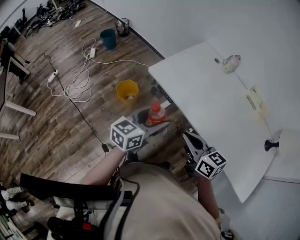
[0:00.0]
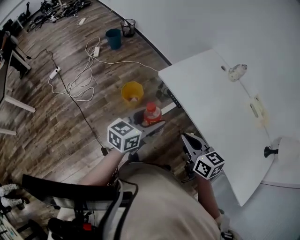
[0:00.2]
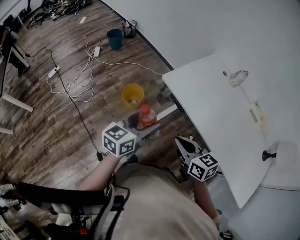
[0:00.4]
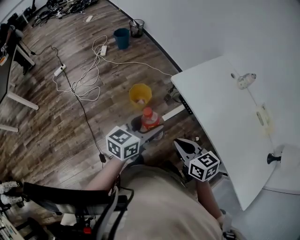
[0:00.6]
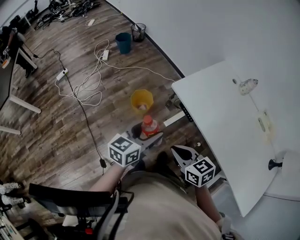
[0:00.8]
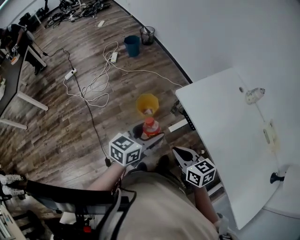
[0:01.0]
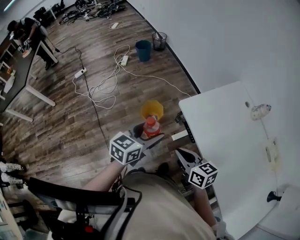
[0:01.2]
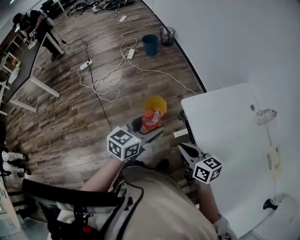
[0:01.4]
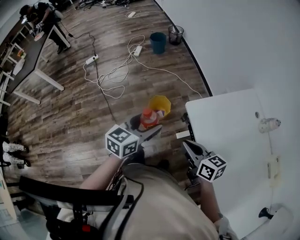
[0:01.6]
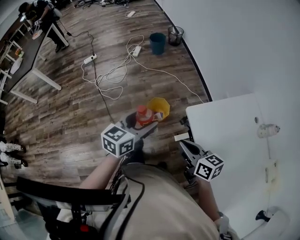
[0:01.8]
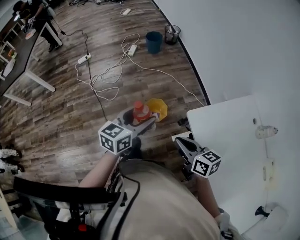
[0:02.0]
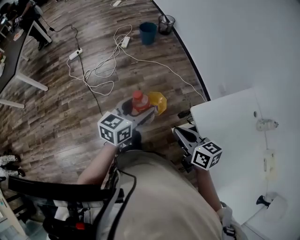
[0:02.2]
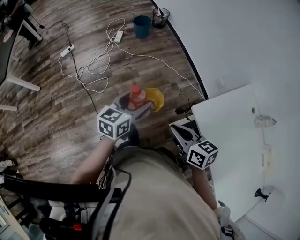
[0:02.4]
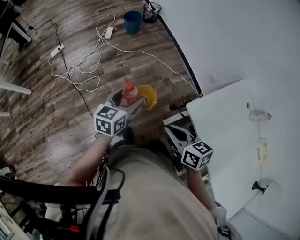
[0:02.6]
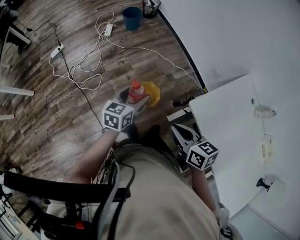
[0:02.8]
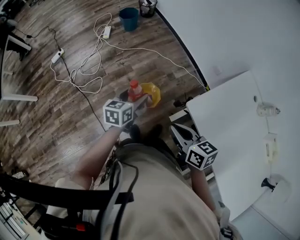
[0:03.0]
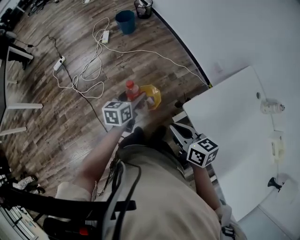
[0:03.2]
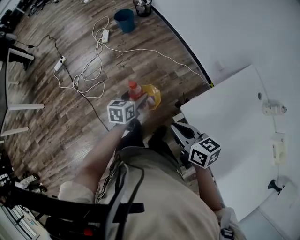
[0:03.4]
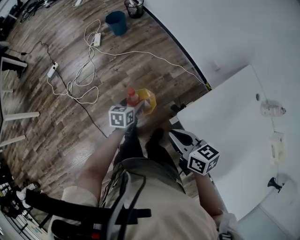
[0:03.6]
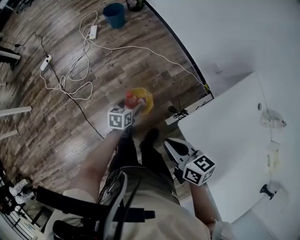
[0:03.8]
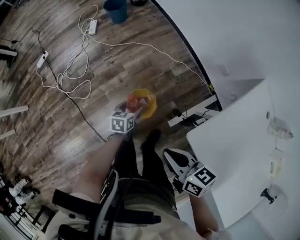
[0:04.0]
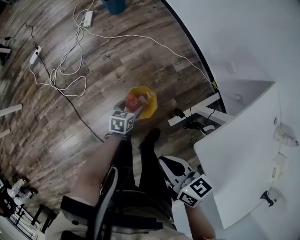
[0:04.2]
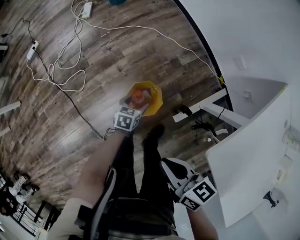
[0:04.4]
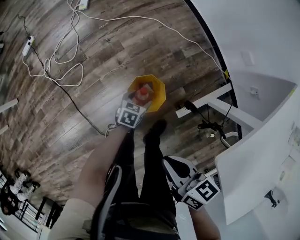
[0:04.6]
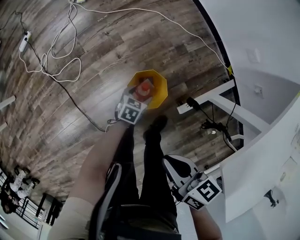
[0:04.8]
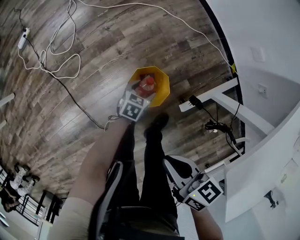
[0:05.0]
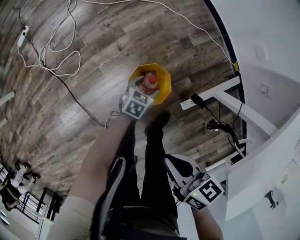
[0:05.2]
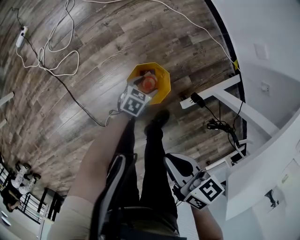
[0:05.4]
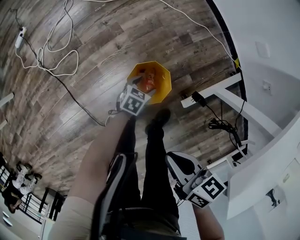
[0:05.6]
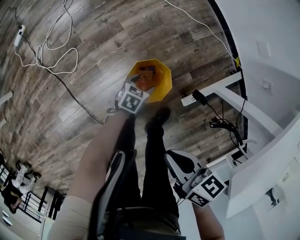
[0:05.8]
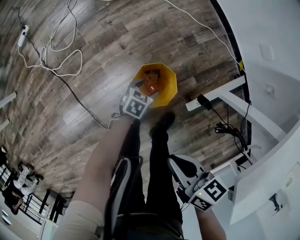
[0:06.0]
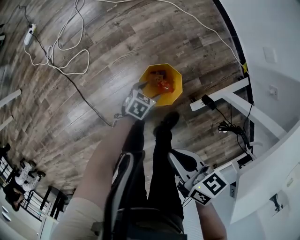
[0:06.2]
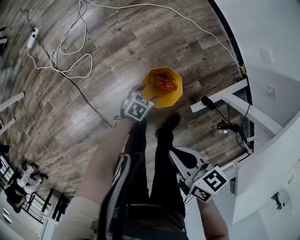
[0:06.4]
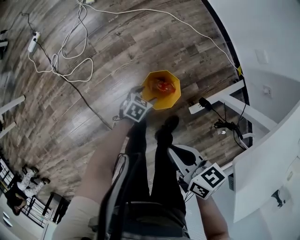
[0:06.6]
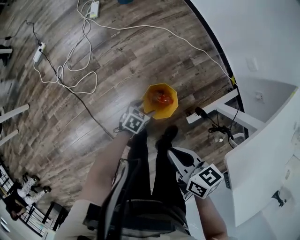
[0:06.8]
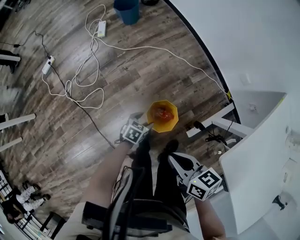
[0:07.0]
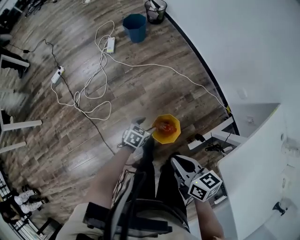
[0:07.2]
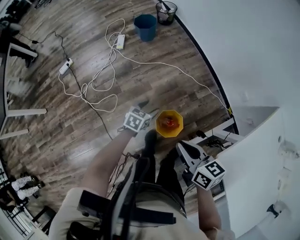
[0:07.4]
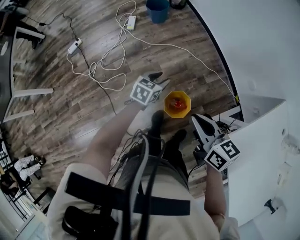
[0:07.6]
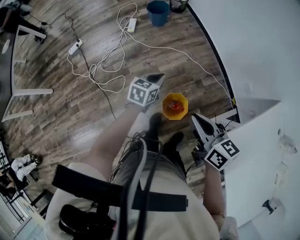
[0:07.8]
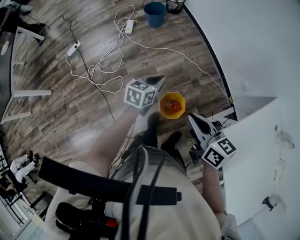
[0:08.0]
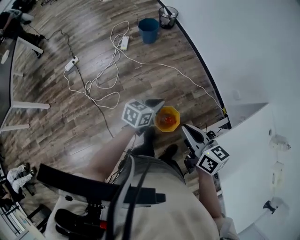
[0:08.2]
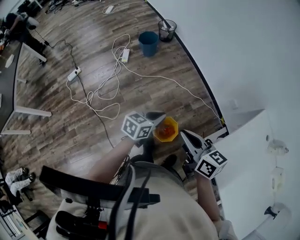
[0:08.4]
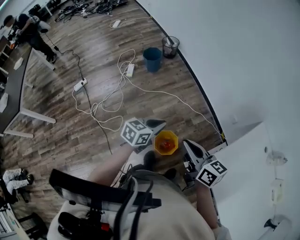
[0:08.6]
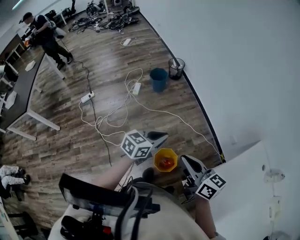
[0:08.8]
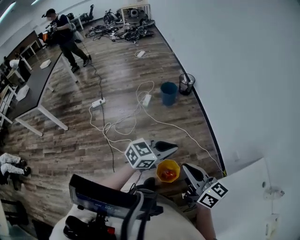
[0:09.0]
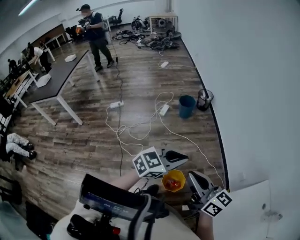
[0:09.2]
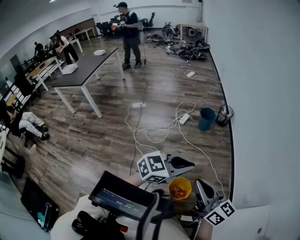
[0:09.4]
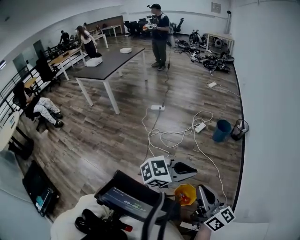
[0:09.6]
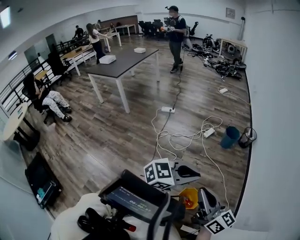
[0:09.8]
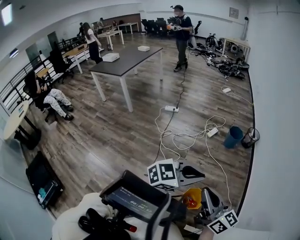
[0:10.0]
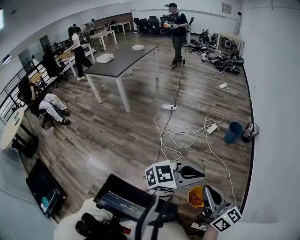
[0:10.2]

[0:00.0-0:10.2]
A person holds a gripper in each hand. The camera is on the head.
0:00.0 to 0:01.4: The left gripper moves approximately 20 cm, and swivels about 30 degrees. Meanwhile the right gripper ends up about 20 cm from where it was, and changes its angle by about 30 degrees.
0:01.4 to 0:03.0: The right gripper moves forward and to the left, roughly 25 cm. Meanwhile the left gripper goes roughly 30 cm forward and downward.
0:03.0 to 0:04.4: The left gripper shifts approximately 40 cm downward, and changes its angle by some 20 degrees, while the right gripper is displaced downward and forward by about 20 cm.
0:04.4 to 0:05.8: The two grippers go approximately 15 cm downward.
0:05.8 to 0:07.2: Both grippers travel together upward and to the left, some 25 cm.
0:07.2 to 0:08.8: The right gripper shifts about 25 cm upward, and turns by roughly 30 degrees, while the left gripper travels upward by about 40 cm, tips its fingers upward by some 30 degrees, and closes up.
0:08.8 to 0:10.2: The right gripper shifts roughly 25 cm to the left, backward and upward, and swivels some 30 degrees, while the left gripper moves backward, upward and to the left, approximately 30 cm, and swivels roughly 30 degrees.

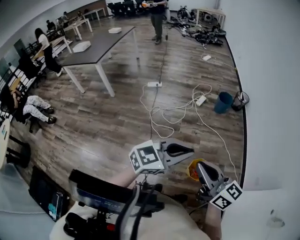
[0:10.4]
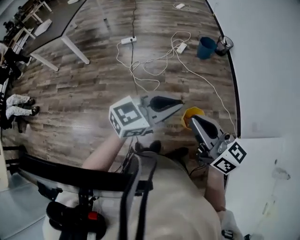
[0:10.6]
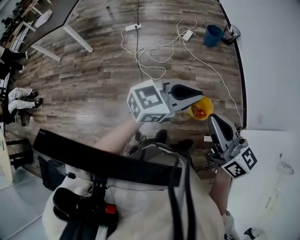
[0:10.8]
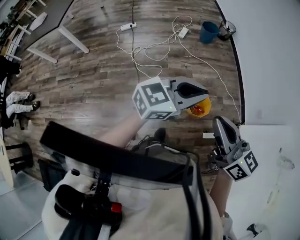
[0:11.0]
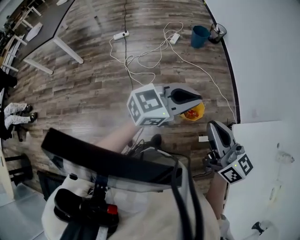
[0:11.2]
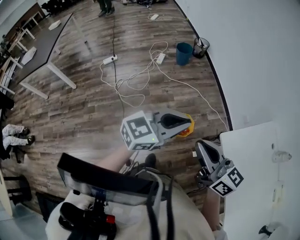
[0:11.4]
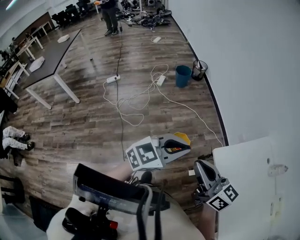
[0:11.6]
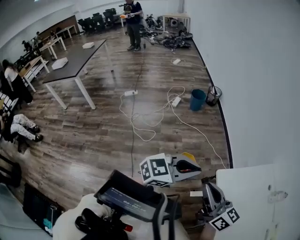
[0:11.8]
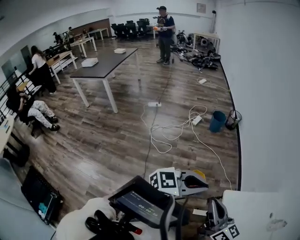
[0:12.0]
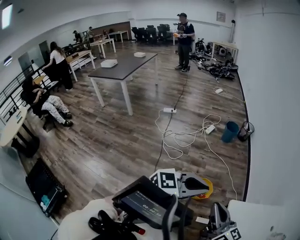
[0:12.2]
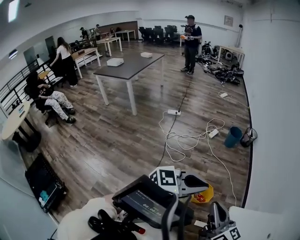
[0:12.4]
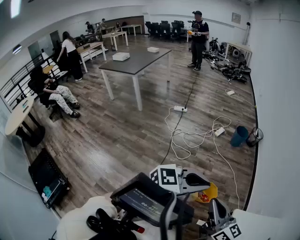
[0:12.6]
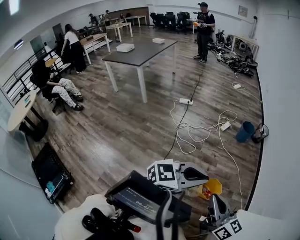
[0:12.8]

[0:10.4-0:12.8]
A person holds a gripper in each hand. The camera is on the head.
0:10.4 to 0:11.6: Both grippers travel together to the right and backward, about 20 cm. The right gripper swivels approximately 20 degrees, while the left gripper changes its angle by some 20 degrees.
0:11.6 to 0:12.8: Both grippers move to the left, about 15 cm. The left gripper turns by roughly 20 degrees; the right gripper changes its angle by about 20 degrees.

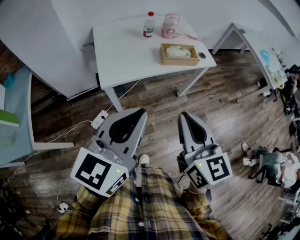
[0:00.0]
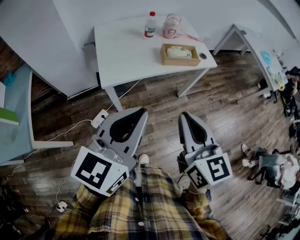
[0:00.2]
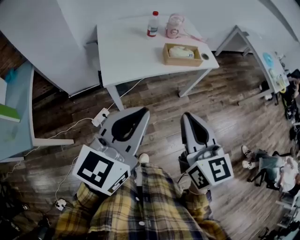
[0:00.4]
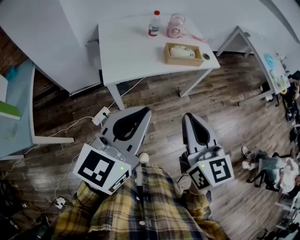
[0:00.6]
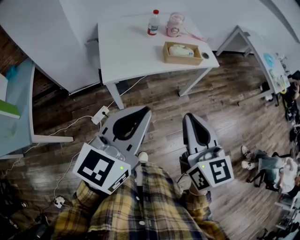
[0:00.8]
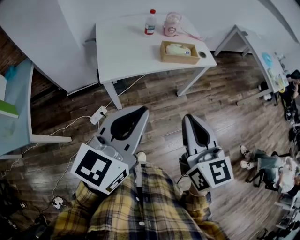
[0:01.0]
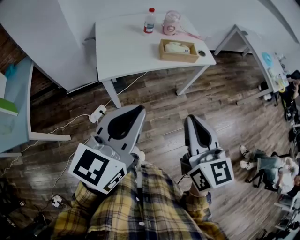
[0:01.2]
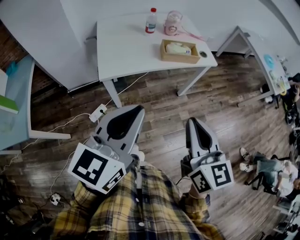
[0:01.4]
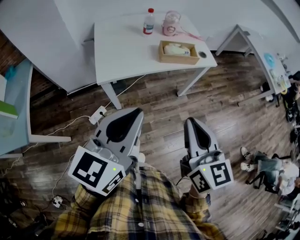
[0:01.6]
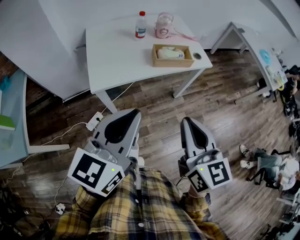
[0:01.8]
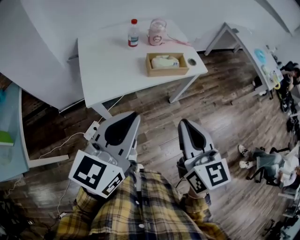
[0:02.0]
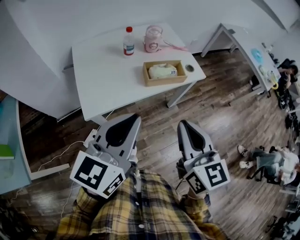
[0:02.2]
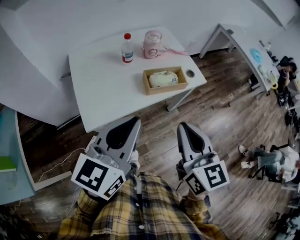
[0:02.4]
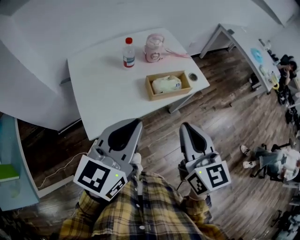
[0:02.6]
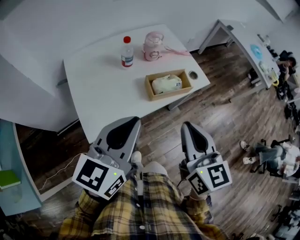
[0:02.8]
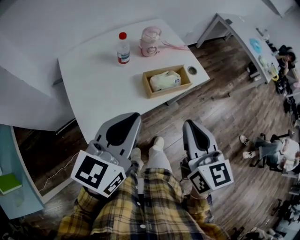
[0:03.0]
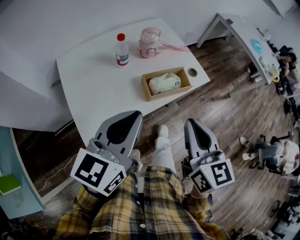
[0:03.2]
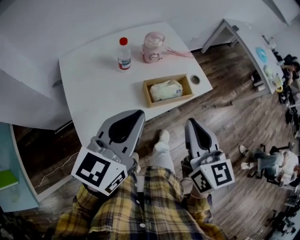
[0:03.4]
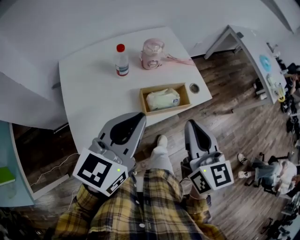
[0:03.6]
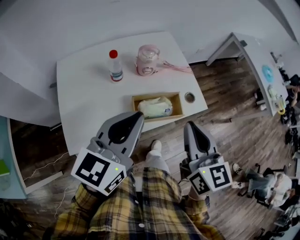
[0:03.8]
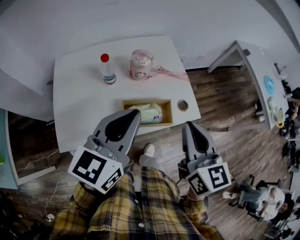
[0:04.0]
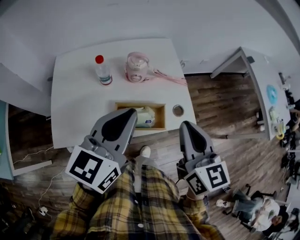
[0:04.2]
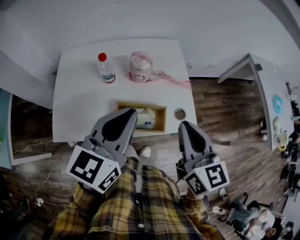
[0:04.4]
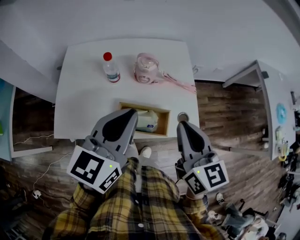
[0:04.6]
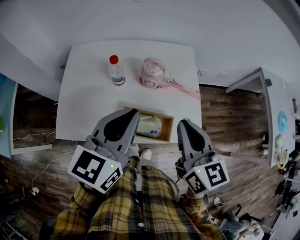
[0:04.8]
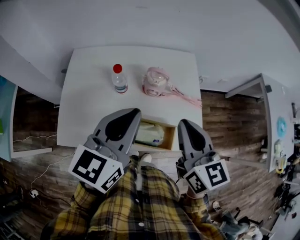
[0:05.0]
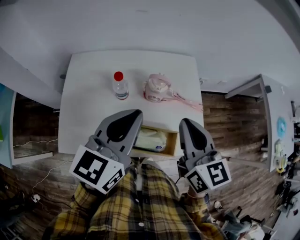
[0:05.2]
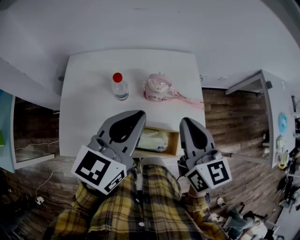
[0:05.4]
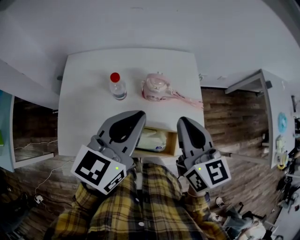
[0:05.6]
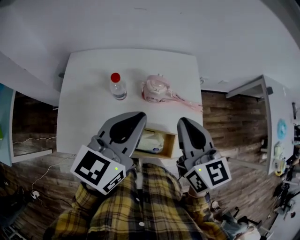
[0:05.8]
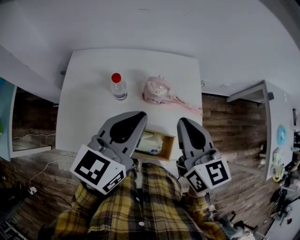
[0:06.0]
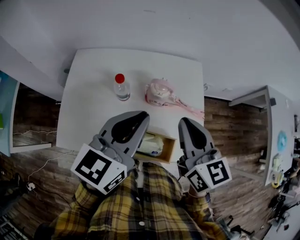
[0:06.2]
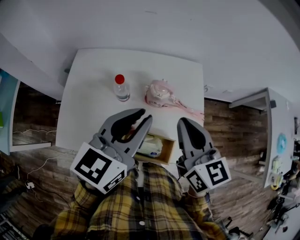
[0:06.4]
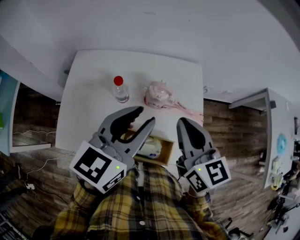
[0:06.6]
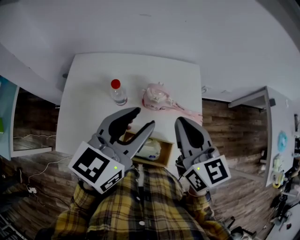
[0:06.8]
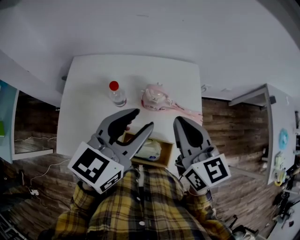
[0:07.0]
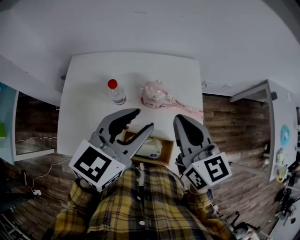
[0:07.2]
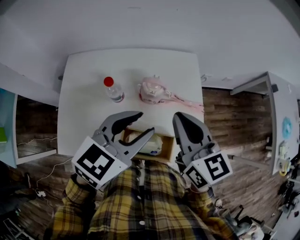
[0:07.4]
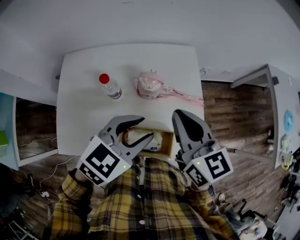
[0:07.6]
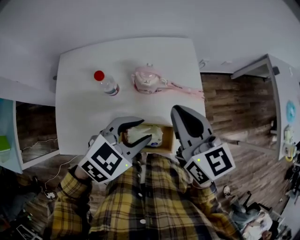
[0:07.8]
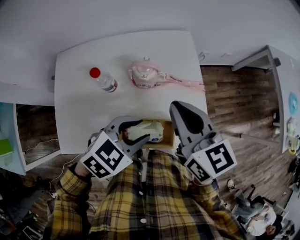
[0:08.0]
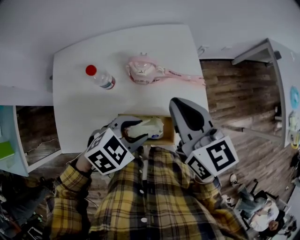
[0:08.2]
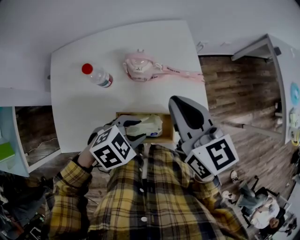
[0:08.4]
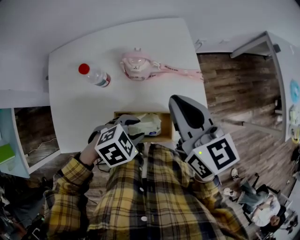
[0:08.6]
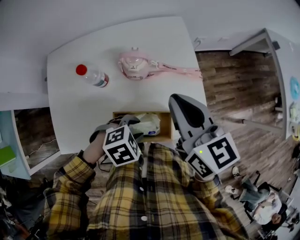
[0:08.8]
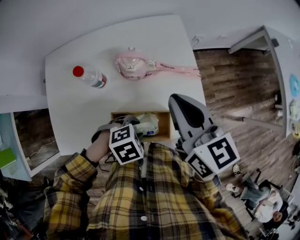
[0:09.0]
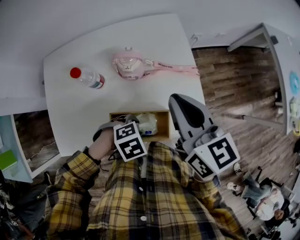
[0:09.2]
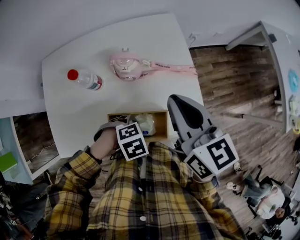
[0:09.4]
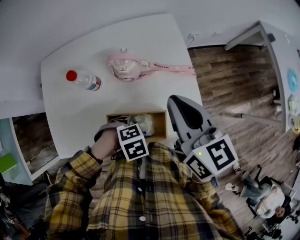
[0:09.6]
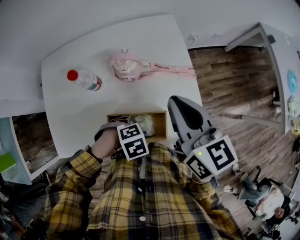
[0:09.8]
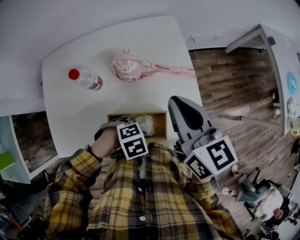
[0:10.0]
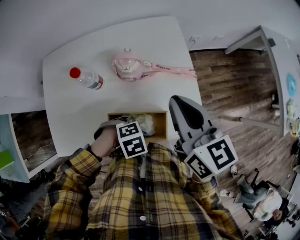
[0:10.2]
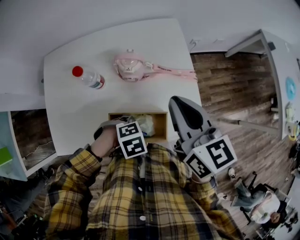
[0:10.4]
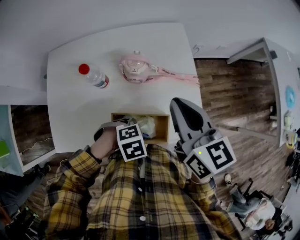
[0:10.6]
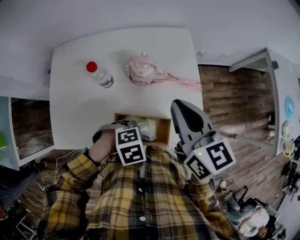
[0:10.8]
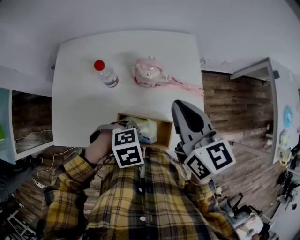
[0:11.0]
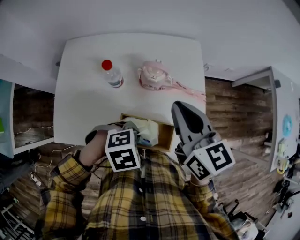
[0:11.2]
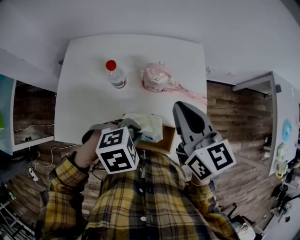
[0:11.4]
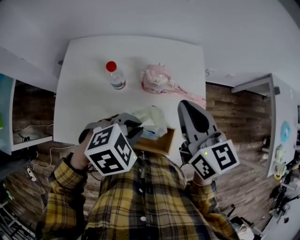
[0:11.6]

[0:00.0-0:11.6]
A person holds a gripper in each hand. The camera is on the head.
0:00.0 to 0:01.4: The right gripper is displaced to the right by about 5 cm.
0:01.4 to 0:02.8: Both grippers move forward, about 25 cm.
0:02.8 to 0:04.4: The grippers both shift forward and to the right by approximately 25 cm. The left gripper swivels about 20 degrees; the right gripper swivels roughly 20 degrees.
0:04.4 to 0:05.8: The right gripper travels forward and to the left by roughly 15 cm, while the left gripper moves forward, approximately 10 cm.
0:05.8 to 0:07.2: The left gripper opens up.
0:07.2 to 0:08.8: The left gripper is displaced downward by some 25 cm, and angles its fingers downward, by about 50 degrees. The right gripper changes place by roughly 5 cm.
0:08.8 to 0:10.2: The left gripper goes roughly 5 cm downward, and closes up.
0:10.2 to 0:11.6: The right gripper ends up some 5 cm from where it was; the left gripper travels upward by approximately 15 cm, and rotates about 30 degrees.
